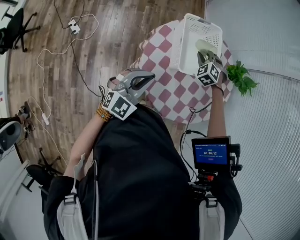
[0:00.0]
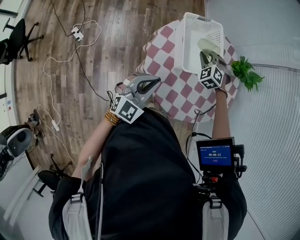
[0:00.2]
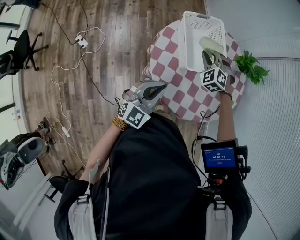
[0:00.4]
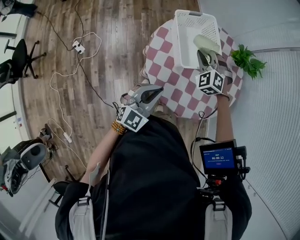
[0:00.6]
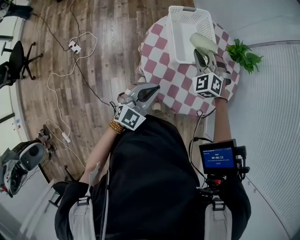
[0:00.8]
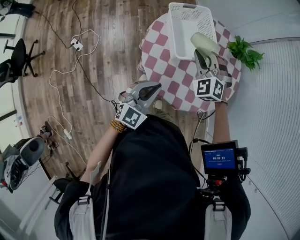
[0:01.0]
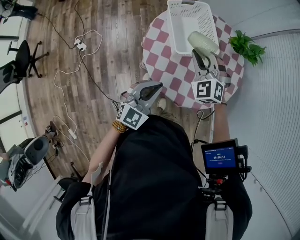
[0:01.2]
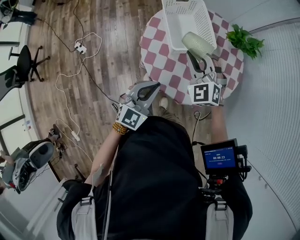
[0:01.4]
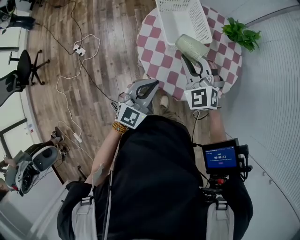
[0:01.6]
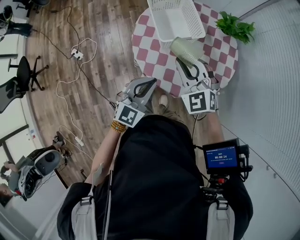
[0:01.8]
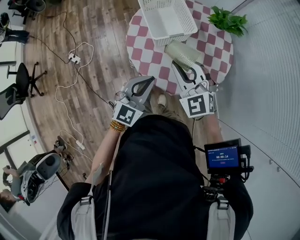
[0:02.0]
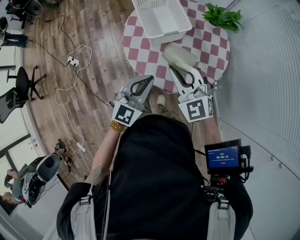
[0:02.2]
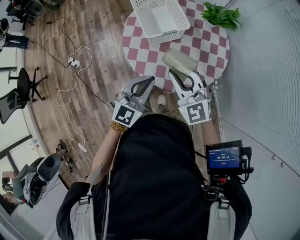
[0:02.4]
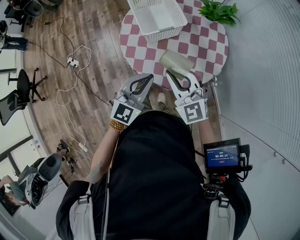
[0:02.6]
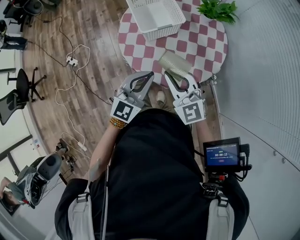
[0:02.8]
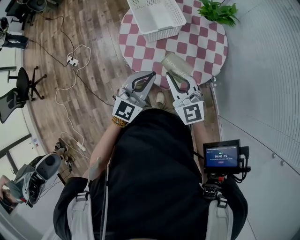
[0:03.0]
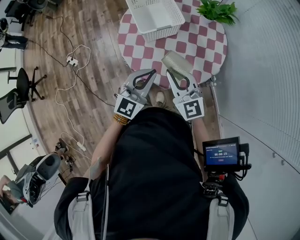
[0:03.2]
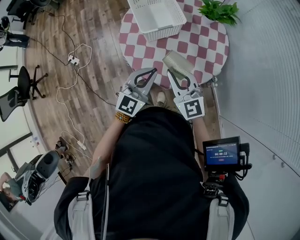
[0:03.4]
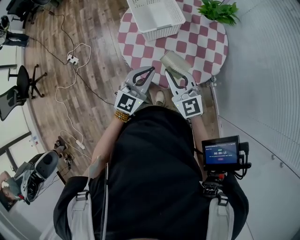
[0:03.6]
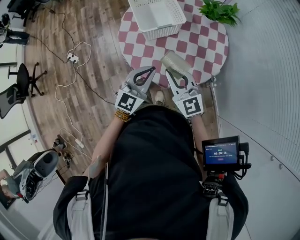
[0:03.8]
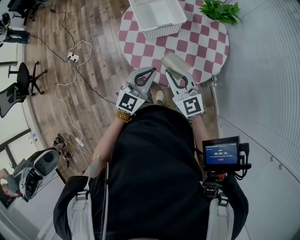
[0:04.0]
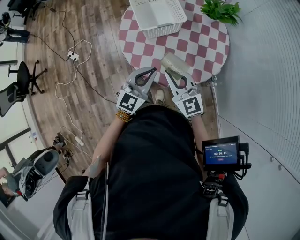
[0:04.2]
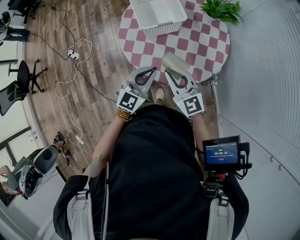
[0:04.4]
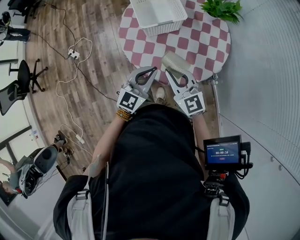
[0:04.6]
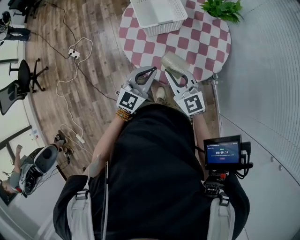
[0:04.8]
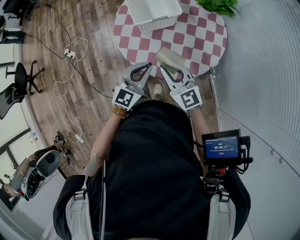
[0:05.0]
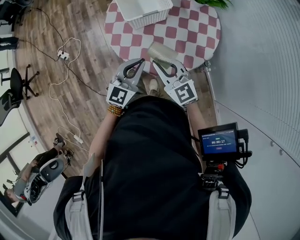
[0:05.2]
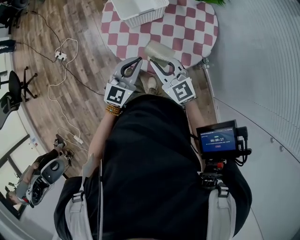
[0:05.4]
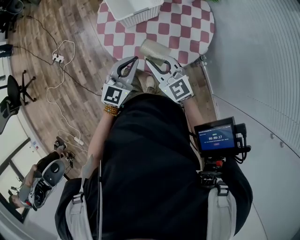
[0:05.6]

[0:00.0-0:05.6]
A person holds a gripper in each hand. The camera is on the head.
0:00.0 to 0:01.4: The left gripper is displaced to the right and backward by some 15 cm. Meanwhile the right gripper goes approximately 25 cm backward and upward, and turns by roughly 30 degrees.
0:01.4 to 0:02.8: The right gripper heads backward and to the right, covering roughly 15 cm, and swivels some 30 degrees, while the left gripper moves to the right, approximately 10 cm.
0:02.8 to 0:04.2: The grippers both shift downward by some 5 cm.
0:04.2 to 0:05.6: Both grippers stay put.

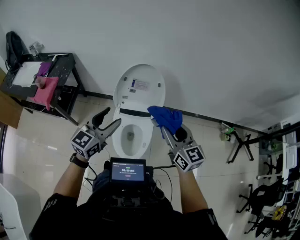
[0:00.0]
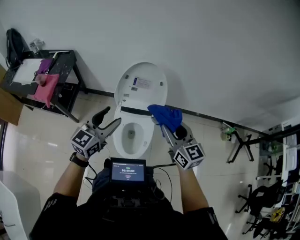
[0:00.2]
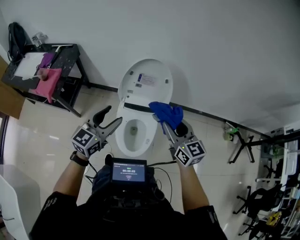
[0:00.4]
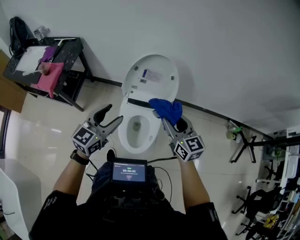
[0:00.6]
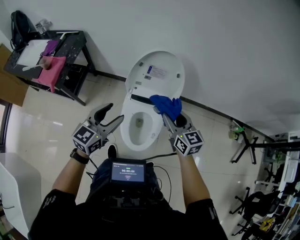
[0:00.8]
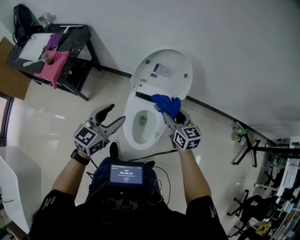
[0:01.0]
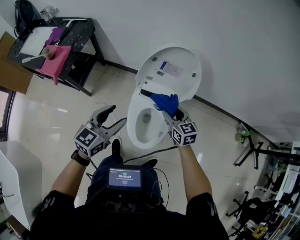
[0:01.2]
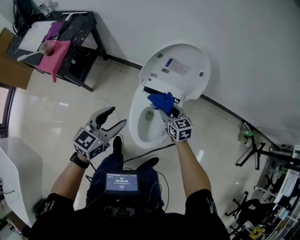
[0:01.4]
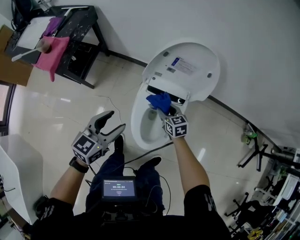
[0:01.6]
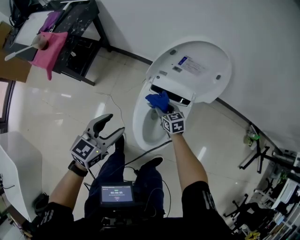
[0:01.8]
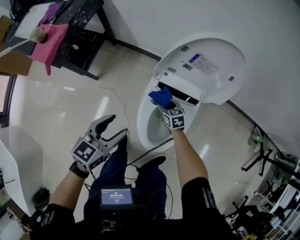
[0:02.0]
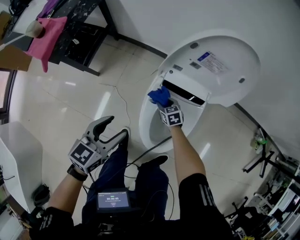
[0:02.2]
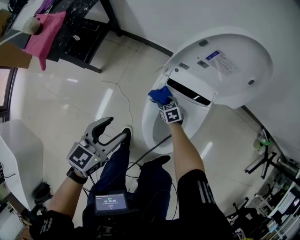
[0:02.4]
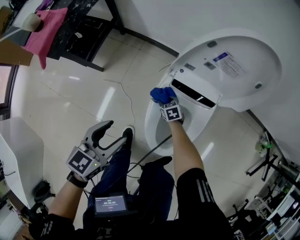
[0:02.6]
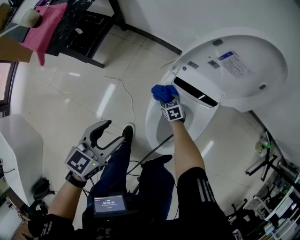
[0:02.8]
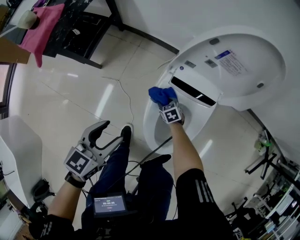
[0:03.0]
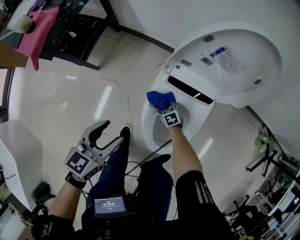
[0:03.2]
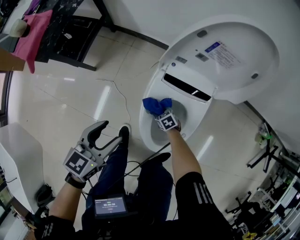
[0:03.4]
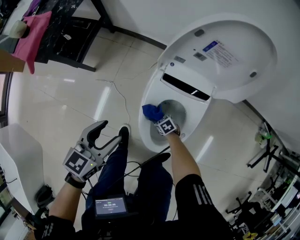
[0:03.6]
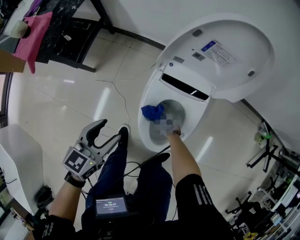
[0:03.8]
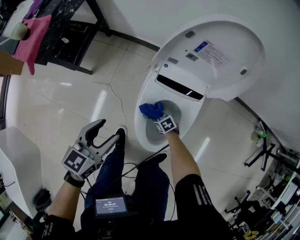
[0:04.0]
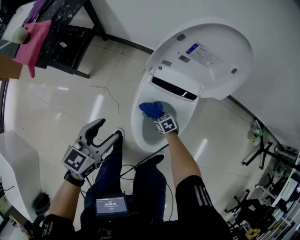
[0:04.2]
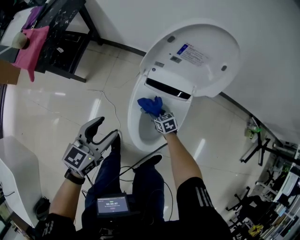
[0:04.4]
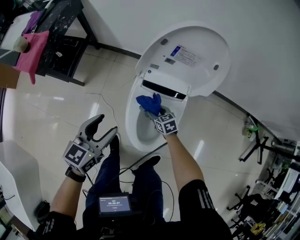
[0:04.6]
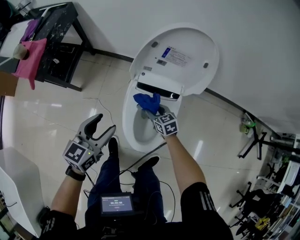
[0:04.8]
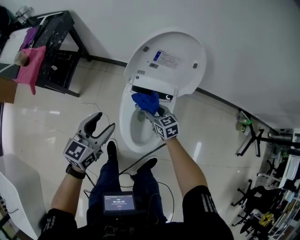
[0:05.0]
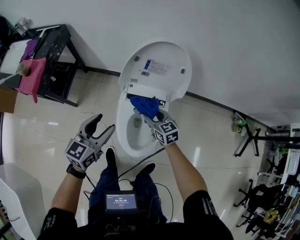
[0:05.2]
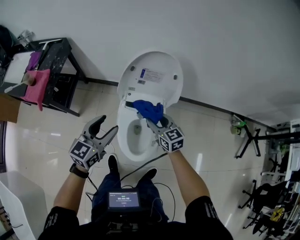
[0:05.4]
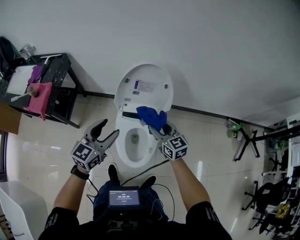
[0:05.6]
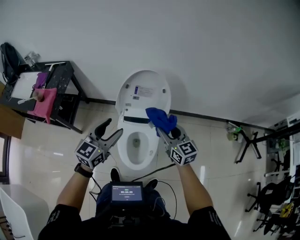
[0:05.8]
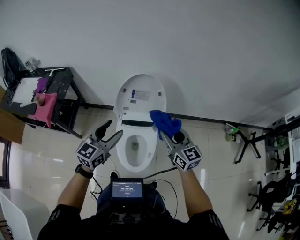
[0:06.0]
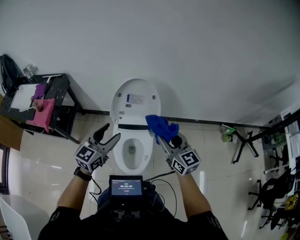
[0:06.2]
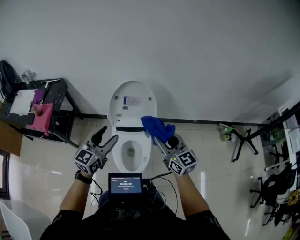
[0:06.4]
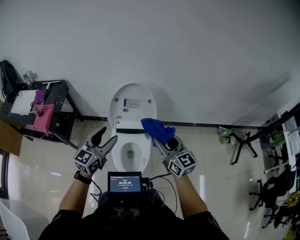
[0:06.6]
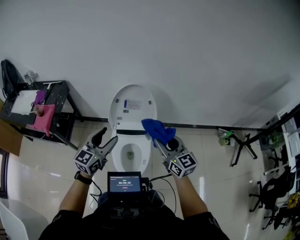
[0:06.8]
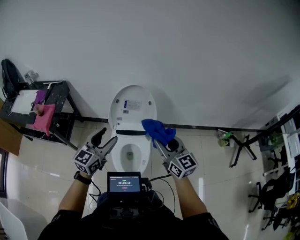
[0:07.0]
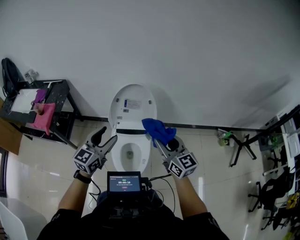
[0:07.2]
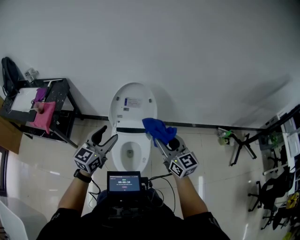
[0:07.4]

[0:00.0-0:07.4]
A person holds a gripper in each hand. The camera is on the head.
0:00.0 to 0:01.4: The left gripper shifts approximately 20 cm downward and to the left. The right gripper shifts roughly 35 cm downward and forward, and changes its angle by some 30 degrees.
0:01.4 to 0:03.0: The left gripper heads downward and to the left, covering roughly 20 cm. Meanwhile the right gripper shifts some 40 cm downward, and rotates about 30 degrees.
0:03.0 to 0:04.4: The left gripper ends up some 10 cm from where it was. The right gripper shifts by some 10 cm.
0:04.4 to 0:06.0: The left gripper heads upward and to the right, covering some 30 cm, and changes its angle by roughly 30 degrees; the right gripper is displaced upward by about 60 cm, and points its fingers roughly 50 degrees further upward.
0:06.0 to 0:07.4: The right gripper is displaced backward and upward by approximately 10 cm.

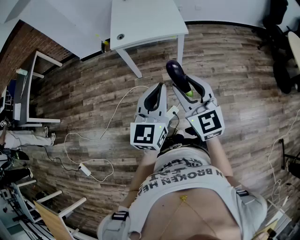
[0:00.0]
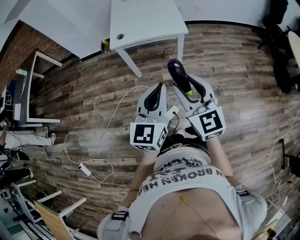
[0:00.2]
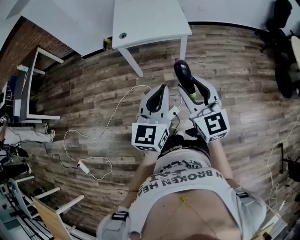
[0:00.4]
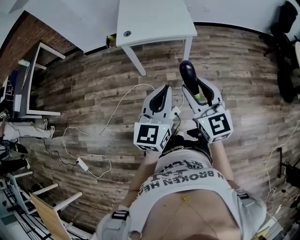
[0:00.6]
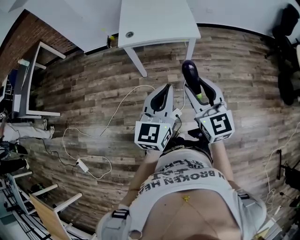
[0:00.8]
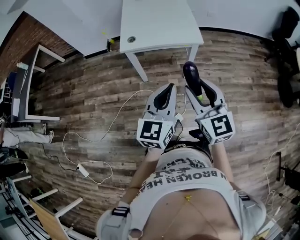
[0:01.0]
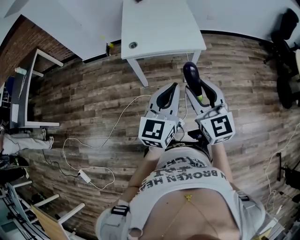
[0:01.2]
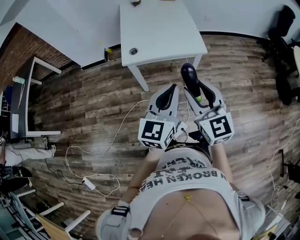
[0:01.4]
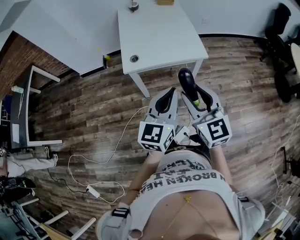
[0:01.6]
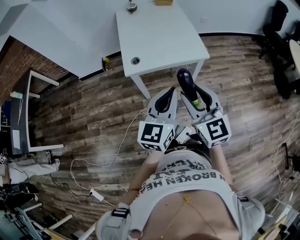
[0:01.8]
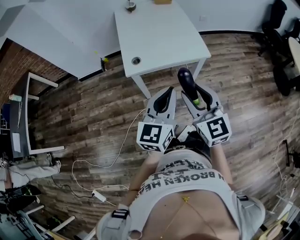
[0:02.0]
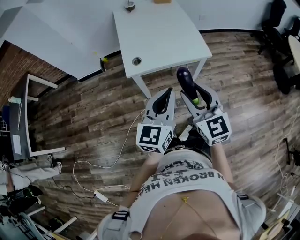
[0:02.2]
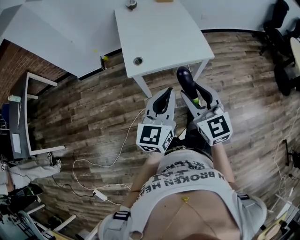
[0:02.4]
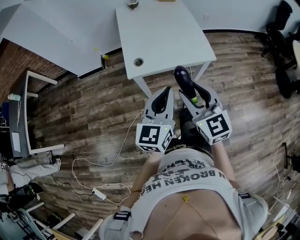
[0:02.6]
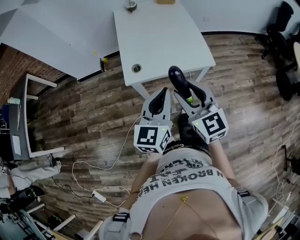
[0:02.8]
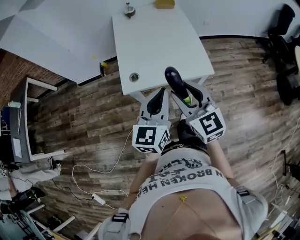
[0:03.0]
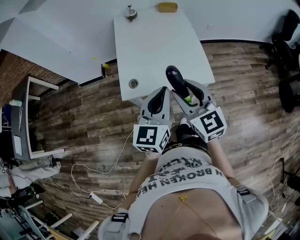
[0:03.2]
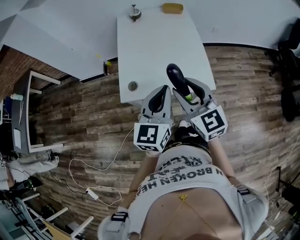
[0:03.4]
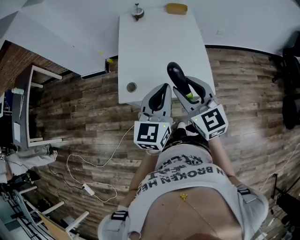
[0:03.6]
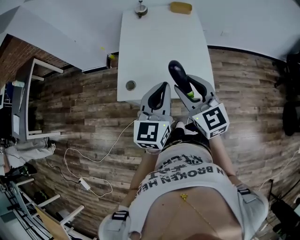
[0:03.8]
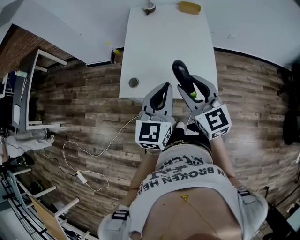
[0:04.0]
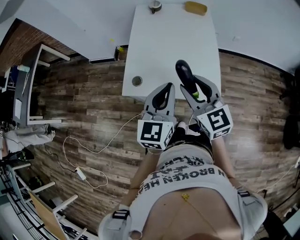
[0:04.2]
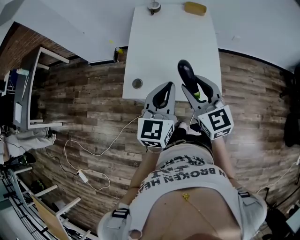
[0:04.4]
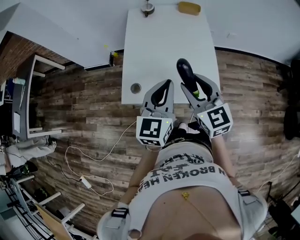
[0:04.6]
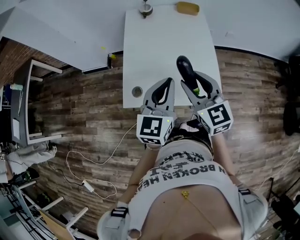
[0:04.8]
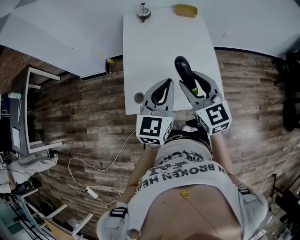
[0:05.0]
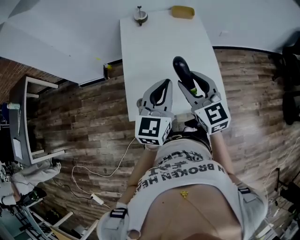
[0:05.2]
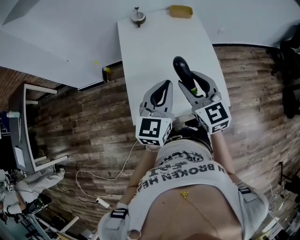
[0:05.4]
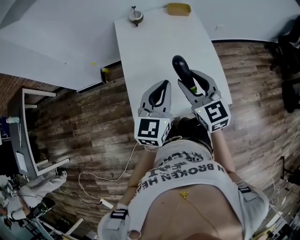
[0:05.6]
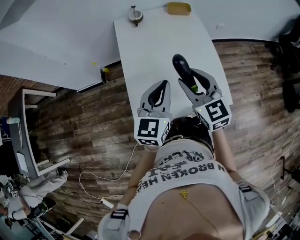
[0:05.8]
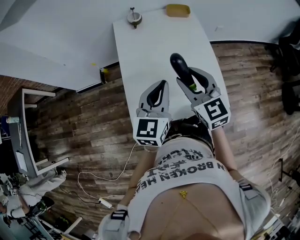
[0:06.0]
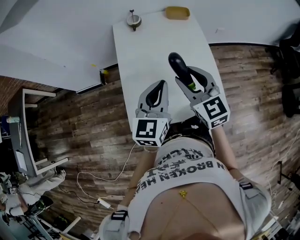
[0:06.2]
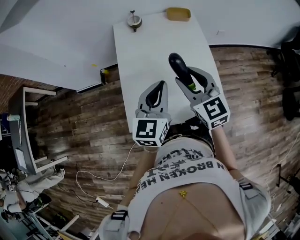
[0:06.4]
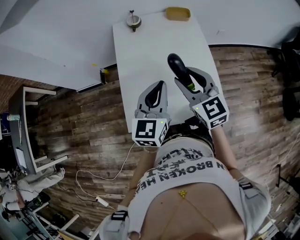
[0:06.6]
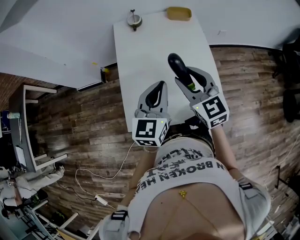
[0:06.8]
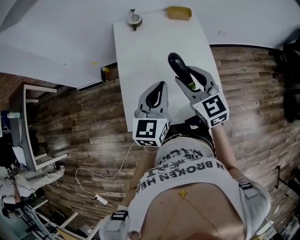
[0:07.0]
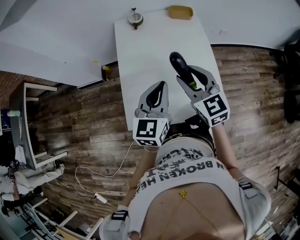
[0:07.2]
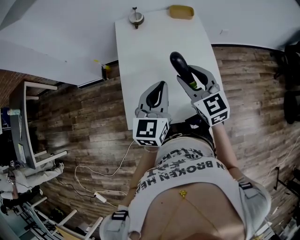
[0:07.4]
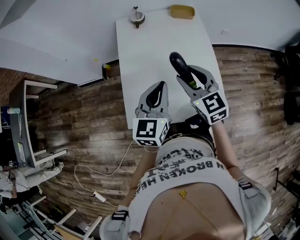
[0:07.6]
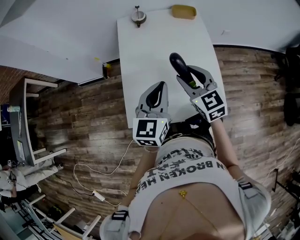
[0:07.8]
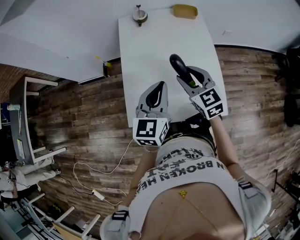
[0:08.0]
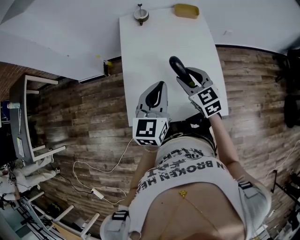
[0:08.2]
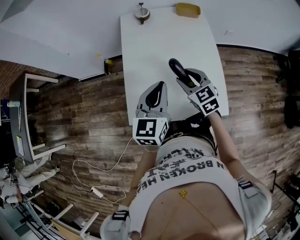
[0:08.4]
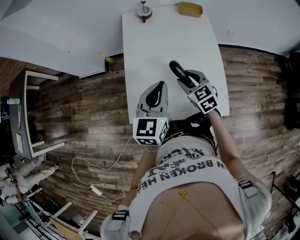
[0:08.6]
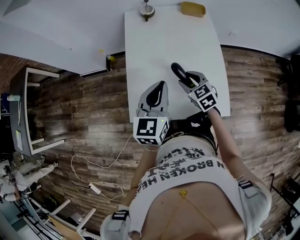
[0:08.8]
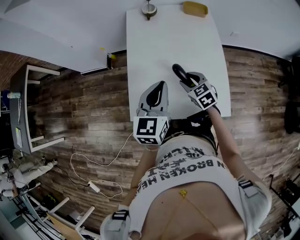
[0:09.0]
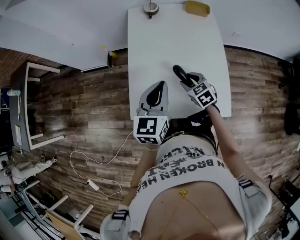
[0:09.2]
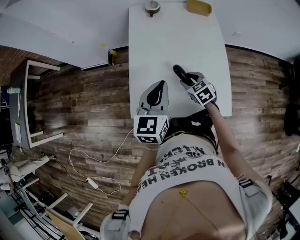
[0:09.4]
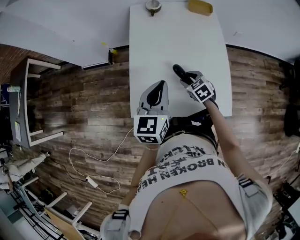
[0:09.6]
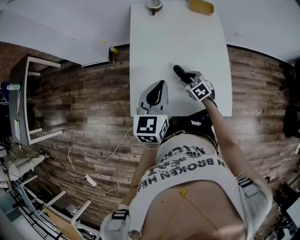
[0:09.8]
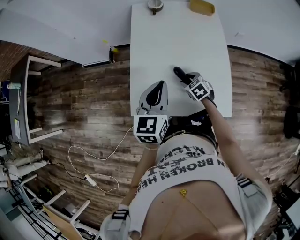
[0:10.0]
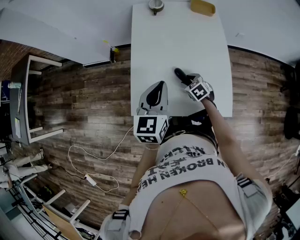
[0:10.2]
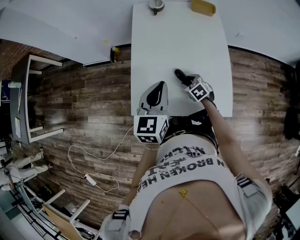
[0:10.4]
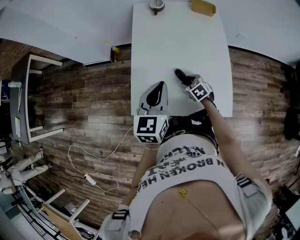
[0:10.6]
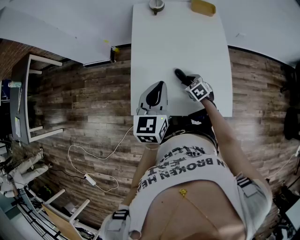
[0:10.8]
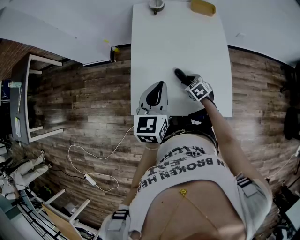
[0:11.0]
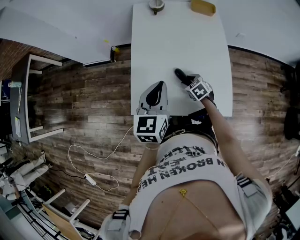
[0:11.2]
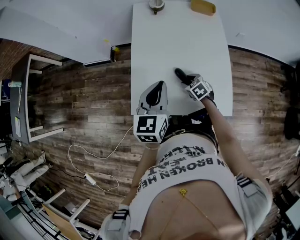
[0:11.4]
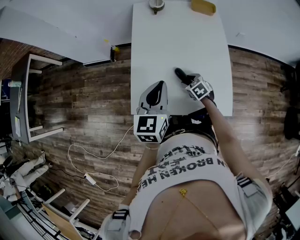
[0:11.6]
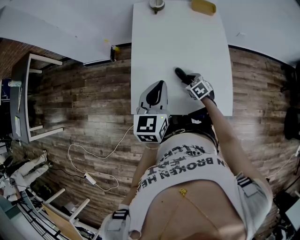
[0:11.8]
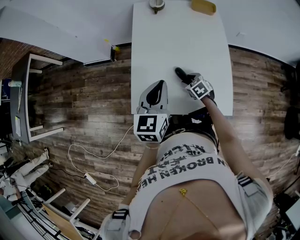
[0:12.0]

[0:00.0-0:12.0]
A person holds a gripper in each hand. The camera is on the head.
0:00.0 to 0:01.6: The grippers both shift forward and to the left by about 25 cm.
0:01.6 to 0:03.0: The grippers both shift forward by about 20 cm.
0:03.0 to 0:04.4: The grippers both shift forward and to the right by some 15 cm.
0:04.4 to 0:06.0: Both grippers travel together forward and to the left, roughly 15 cm.
0:06.0 to 0:07.6: The right gripper ends up some 5 cm from where it was.
0:07.6 to 0:09.0: The right gripper goes about 20 cm downward, and swivels roughly 30 degrees.
0:09.0 to 0:10.4: The right gripper travels downward by about 10 cm.
0:10.4 to 0:12.0: Both grippers stay put.
